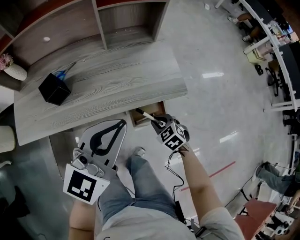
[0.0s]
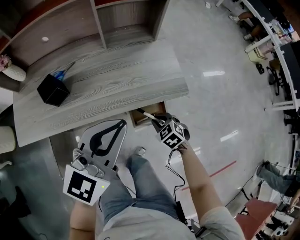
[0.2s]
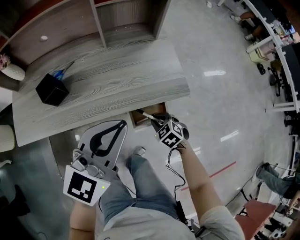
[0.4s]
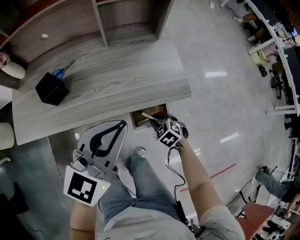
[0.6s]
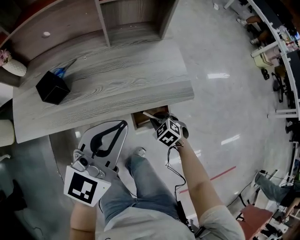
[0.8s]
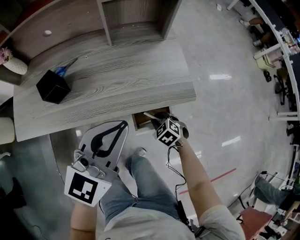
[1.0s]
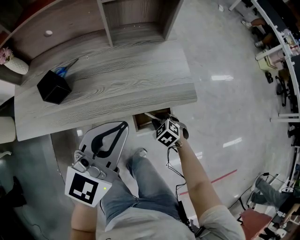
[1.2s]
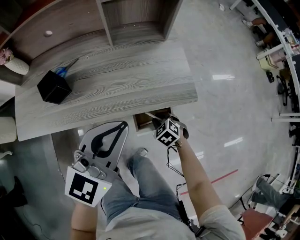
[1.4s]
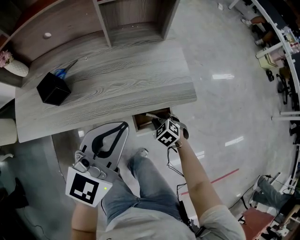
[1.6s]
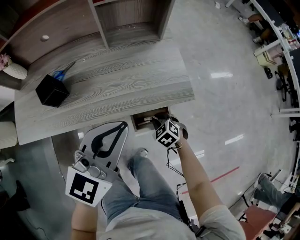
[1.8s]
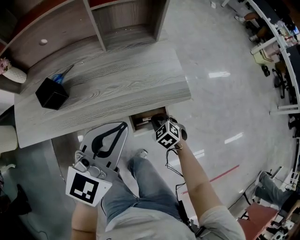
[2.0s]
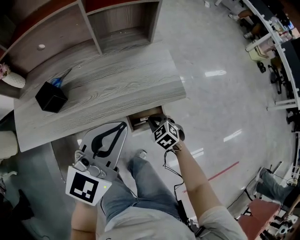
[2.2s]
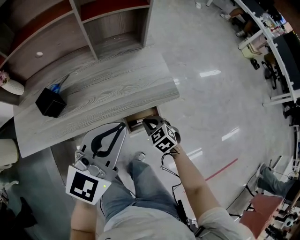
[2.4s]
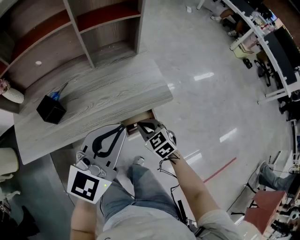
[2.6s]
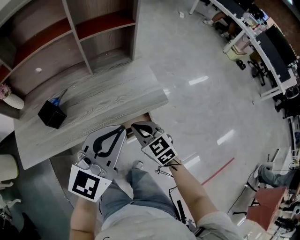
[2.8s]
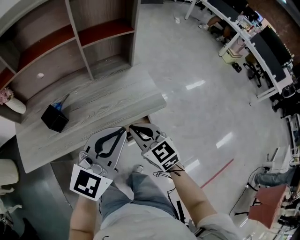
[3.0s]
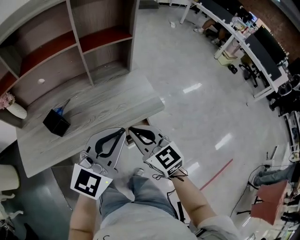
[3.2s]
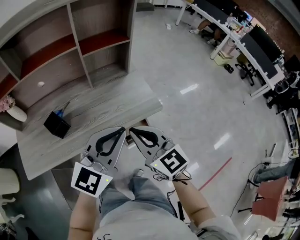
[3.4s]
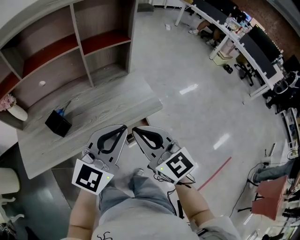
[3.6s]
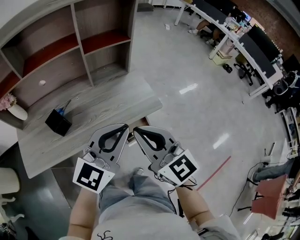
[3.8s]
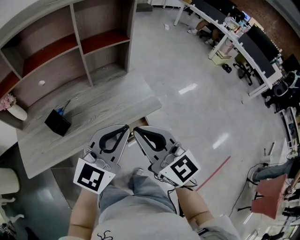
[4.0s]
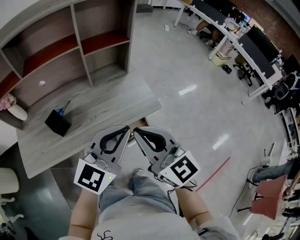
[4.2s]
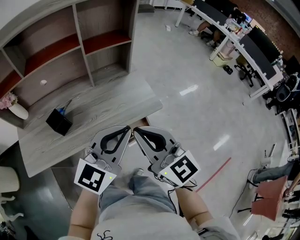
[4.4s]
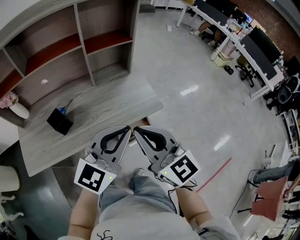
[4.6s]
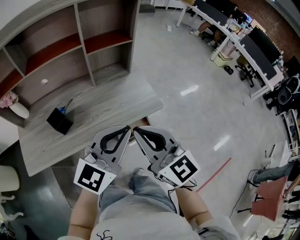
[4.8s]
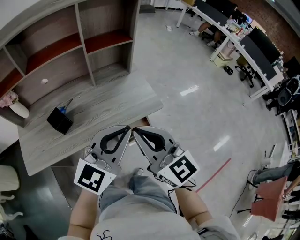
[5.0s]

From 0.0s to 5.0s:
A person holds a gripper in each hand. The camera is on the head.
From 0.0s to 1.6s: The right gripper goes about 10 cm downward.
From 1.6s to 3.4s: The right gripper goes roughly 40 cm upward, and tilts its fingers some 50 degrees upward; the left gripper goes approximately 10 cm upward.
From 3.4s to 5.0s: The right gripper shifts about 5 cm upward.

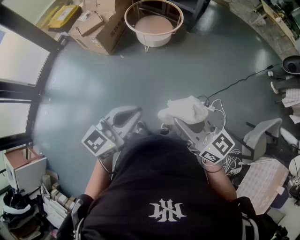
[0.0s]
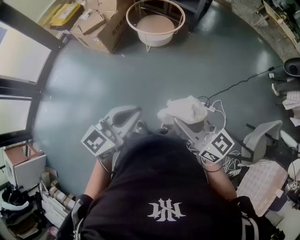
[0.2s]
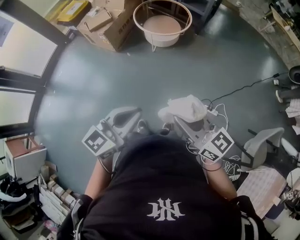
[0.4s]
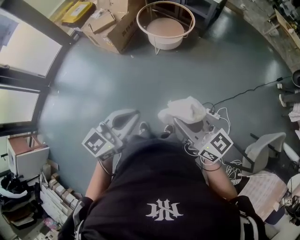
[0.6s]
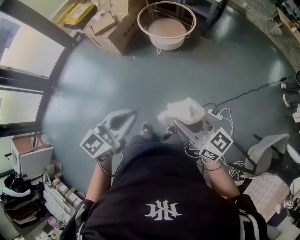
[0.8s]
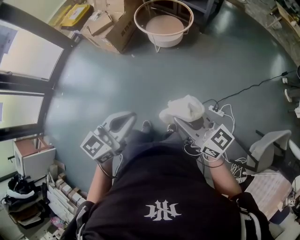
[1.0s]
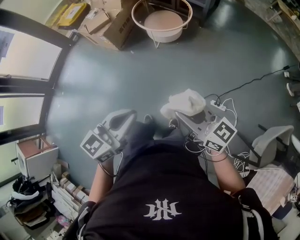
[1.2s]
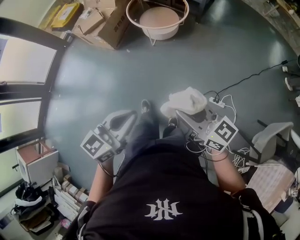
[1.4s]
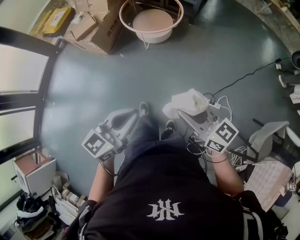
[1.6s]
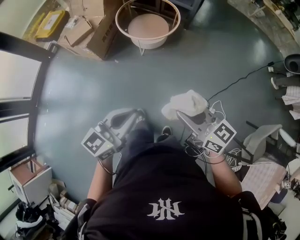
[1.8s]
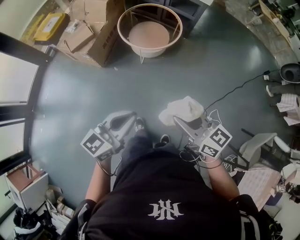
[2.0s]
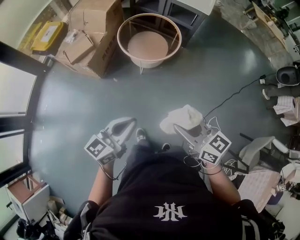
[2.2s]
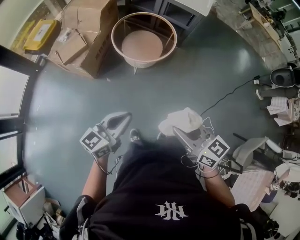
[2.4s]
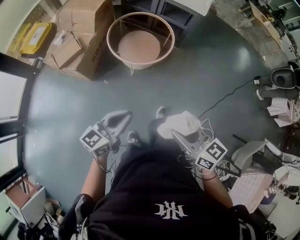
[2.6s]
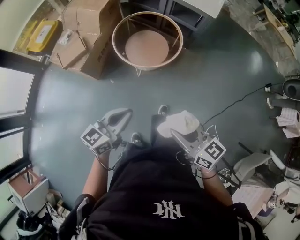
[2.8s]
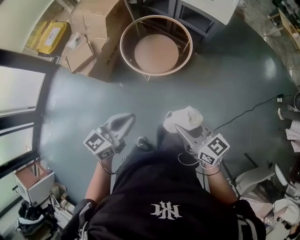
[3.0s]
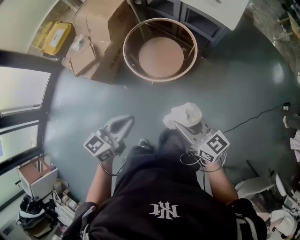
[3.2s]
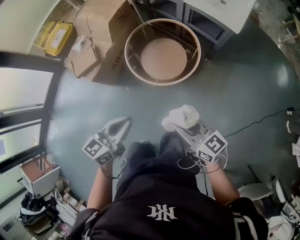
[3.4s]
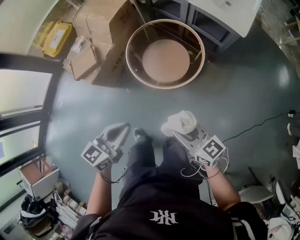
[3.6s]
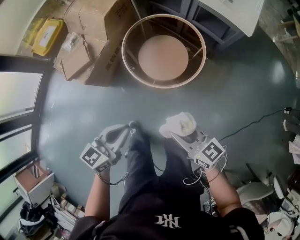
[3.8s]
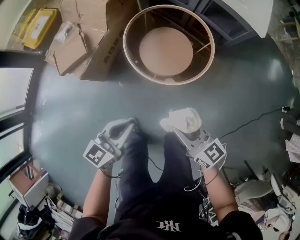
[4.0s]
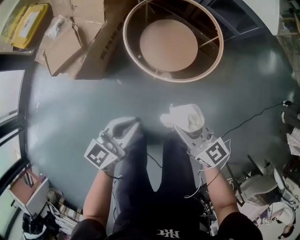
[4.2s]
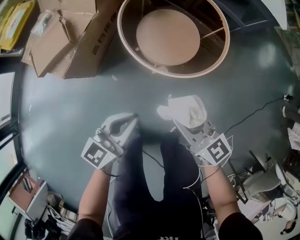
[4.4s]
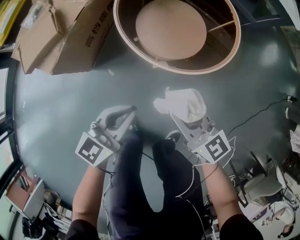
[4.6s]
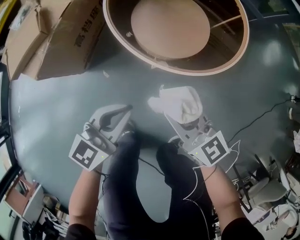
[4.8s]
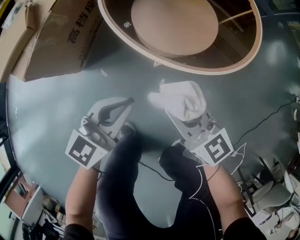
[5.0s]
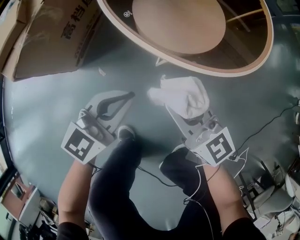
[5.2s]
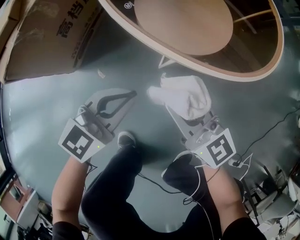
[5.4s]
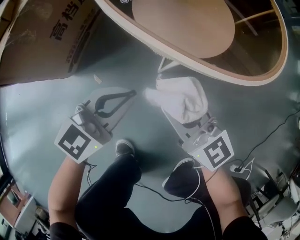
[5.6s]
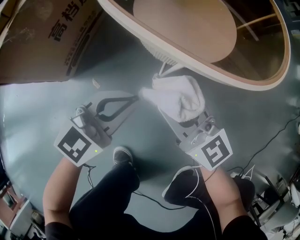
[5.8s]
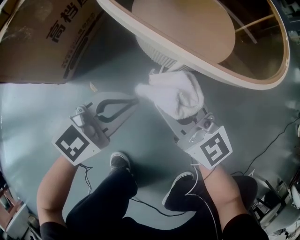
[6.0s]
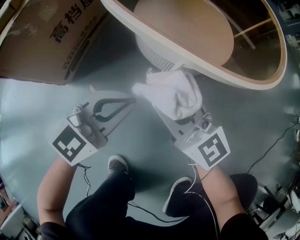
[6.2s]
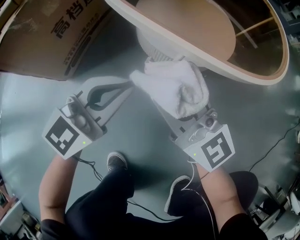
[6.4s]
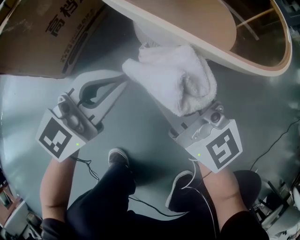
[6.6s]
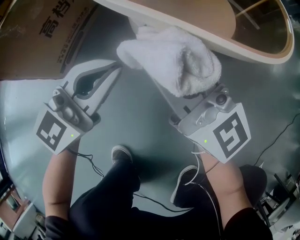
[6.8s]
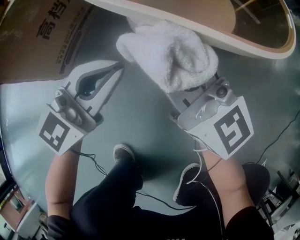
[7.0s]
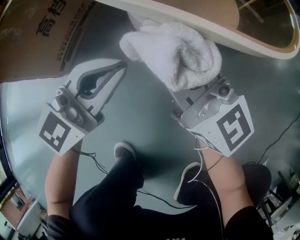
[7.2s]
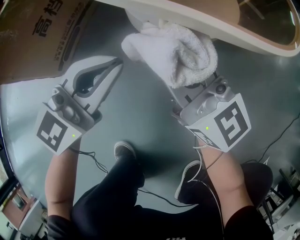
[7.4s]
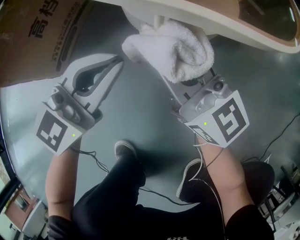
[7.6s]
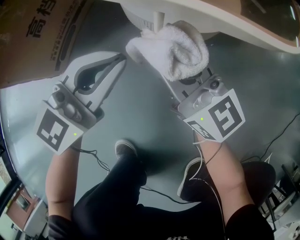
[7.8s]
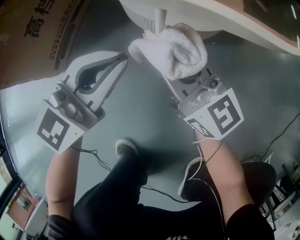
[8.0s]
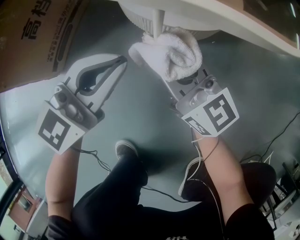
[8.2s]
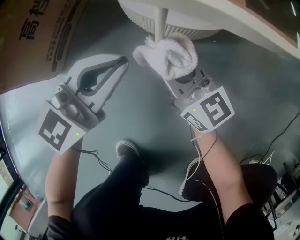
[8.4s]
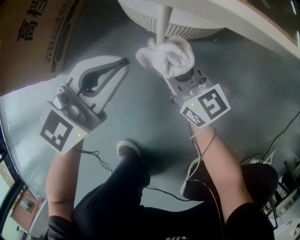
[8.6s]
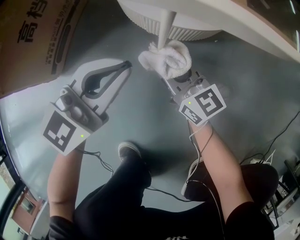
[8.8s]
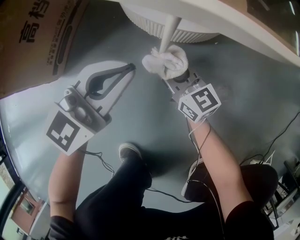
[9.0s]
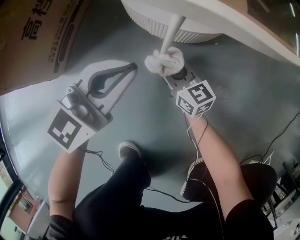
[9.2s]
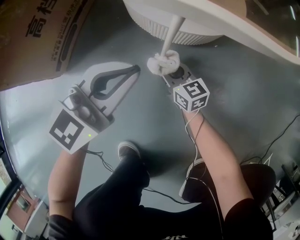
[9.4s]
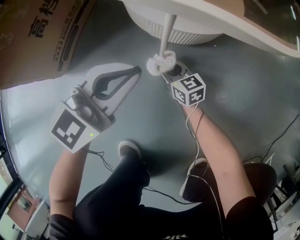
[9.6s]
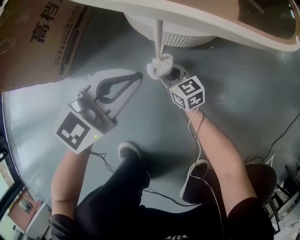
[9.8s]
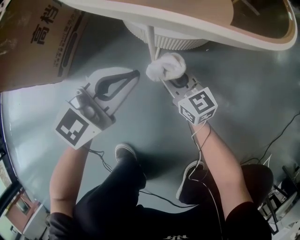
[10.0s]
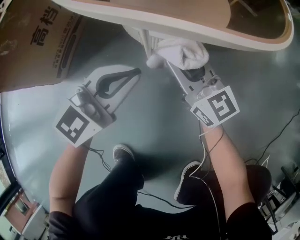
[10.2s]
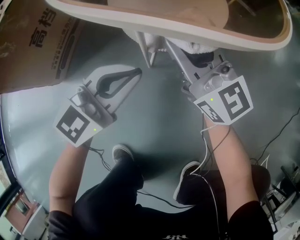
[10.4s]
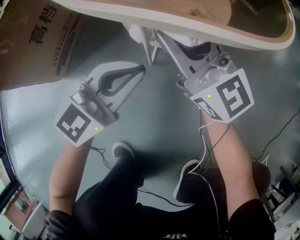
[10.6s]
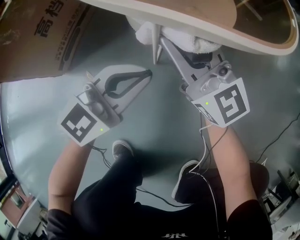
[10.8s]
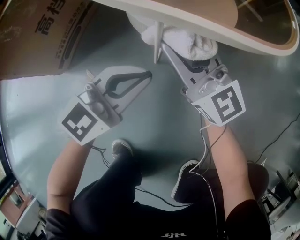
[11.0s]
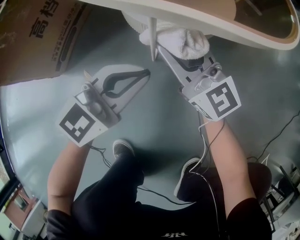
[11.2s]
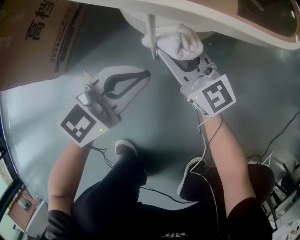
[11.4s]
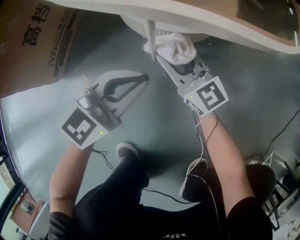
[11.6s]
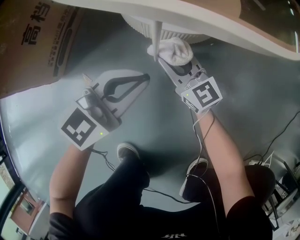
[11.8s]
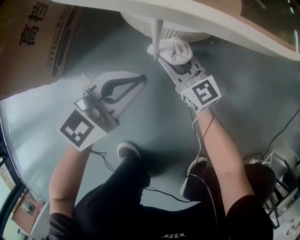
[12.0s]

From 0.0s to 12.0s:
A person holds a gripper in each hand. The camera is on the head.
From 0.0s to 1.6s: The right gripper moves forward and downward, roughly 10 cm; the left gripper heads forward, covering about 10 cm.
From 1.6s to 3.0s: Both grippers move forward, roughly 35 cm.
From 3.0s to 4.4s: Both grippers move downward, forward and to the left, about 40 cm.
From 4.4s to 6.0s: The two grippers go roughly 35 cm downward. The left gripper turns by about 30 degrees.
From 7.6s to 9.0s: The right gripper heads downward, covering some 20 cm.
From 9.0s to 10.4s: The right gripper heads upward, covering about 20 cm, and rotates about 20 degrees. The left gripper moves some 5 cm.
From 10.4s to 12.0s: The left gripper moves downward, some 5 cm; the right gripper goes about 20 cm downward.

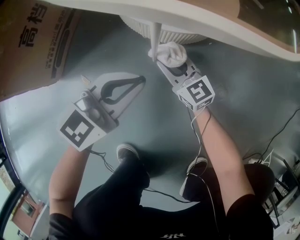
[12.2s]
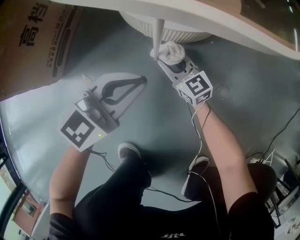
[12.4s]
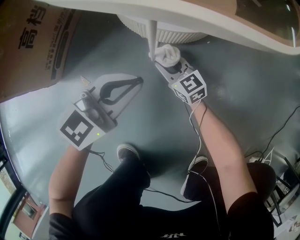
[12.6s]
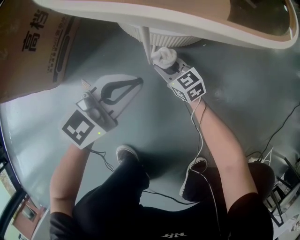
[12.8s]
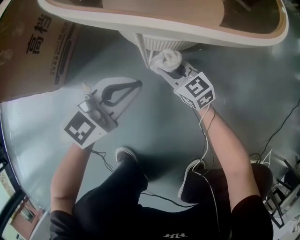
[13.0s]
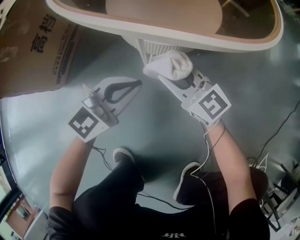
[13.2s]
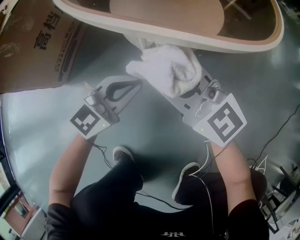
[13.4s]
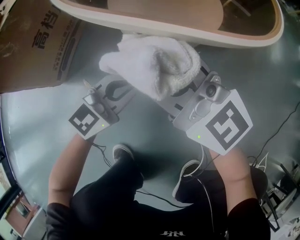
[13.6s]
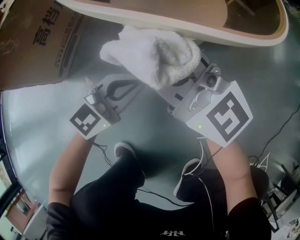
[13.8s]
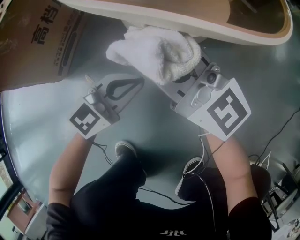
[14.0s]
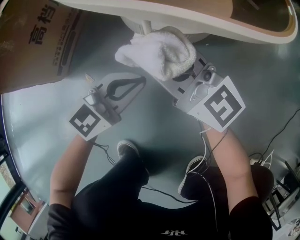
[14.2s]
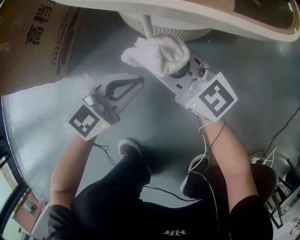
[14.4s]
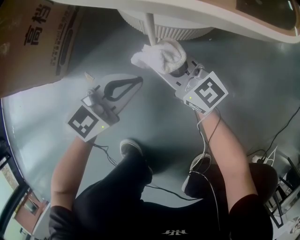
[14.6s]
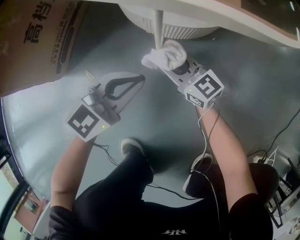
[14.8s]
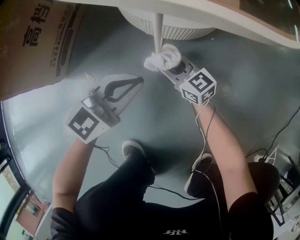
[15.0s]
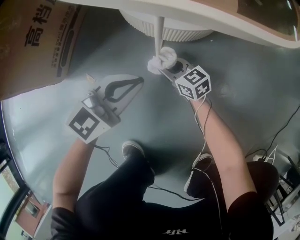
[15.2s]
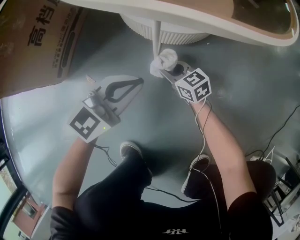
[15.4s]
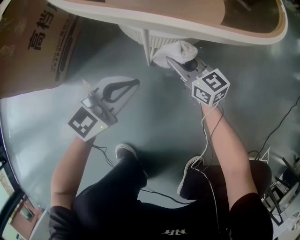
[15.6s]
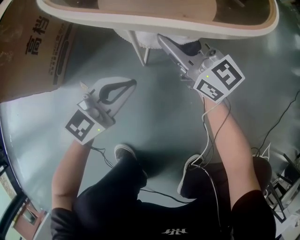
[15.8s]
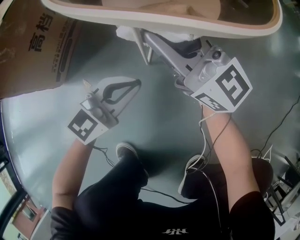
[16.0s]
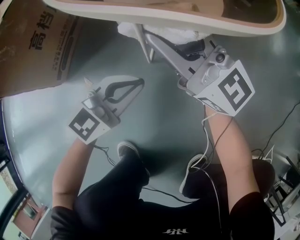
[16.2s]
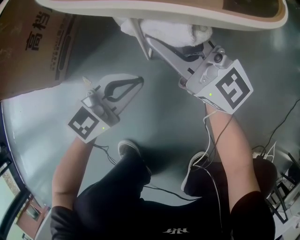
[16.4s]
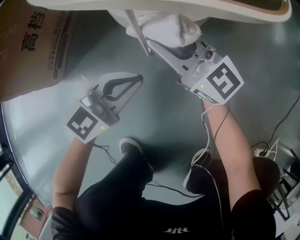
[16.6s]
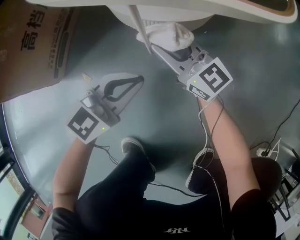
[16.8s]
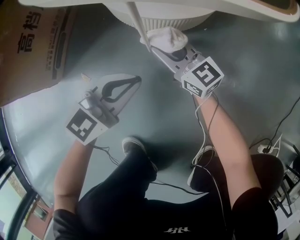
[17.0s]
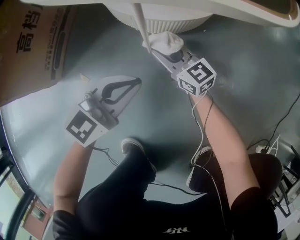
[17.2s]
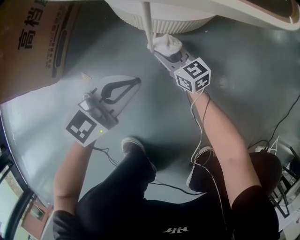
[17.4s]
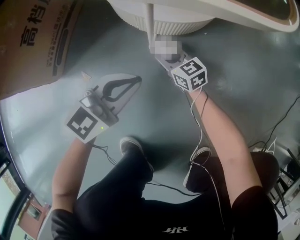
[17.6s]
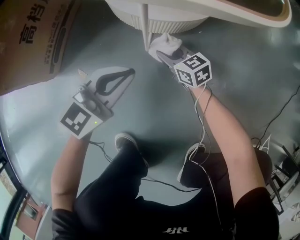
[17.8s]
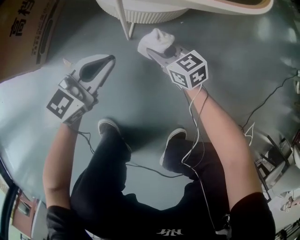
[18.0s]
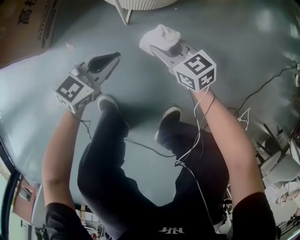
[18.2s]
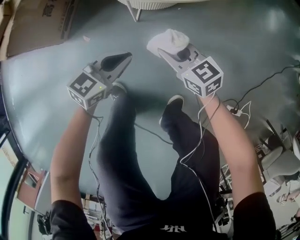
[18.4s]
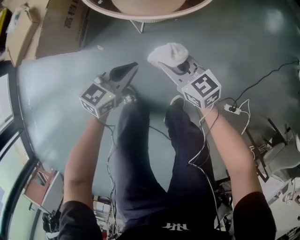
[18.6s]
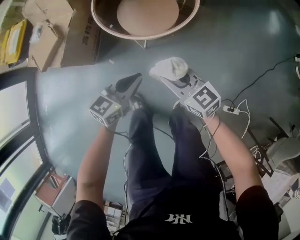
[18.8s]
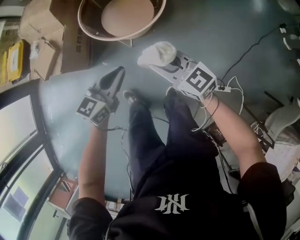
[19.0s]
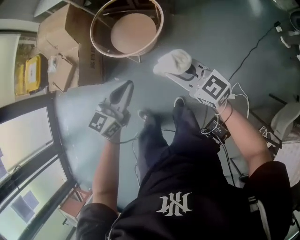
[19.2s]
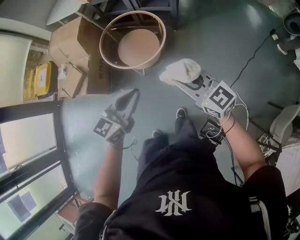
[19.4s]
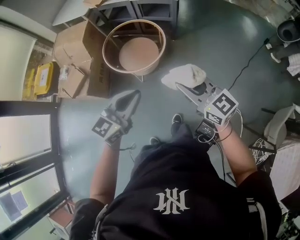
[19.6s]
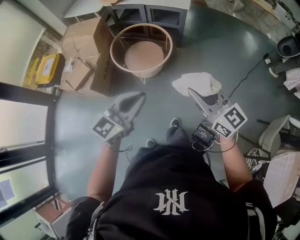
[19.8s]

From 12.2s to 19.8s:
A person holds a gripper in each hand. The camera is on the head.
From 12.2s to 13.8s: The right gripper is displaced upward by approximately 30 cm, and swivels roughly 30 degrees.
From 13.8s to 15.2s: The right gripper shifts approximately 35 cm downward, and tilts its fingers roughly 30 degrees downward.
From 15.2s to 16.8s: The right gripper is displaced upward by approximately 15 cm, and rotates some 30 degrees.
From 16.8s to 18.2s: The right gripper is displaced backward and to the right by roughly 15 cm, moves approximately 15 cm downward and comes back, and angles its fingers downward, by some 30 degrees, while the left gripper moves upward, about 5 cm.
From 18.2s to 19.8s: The two grippers go approximately 80 cm upward. The left gripper turns by approximately 20 degrees, while the right gripper changes its angle by some 40 degrees.
